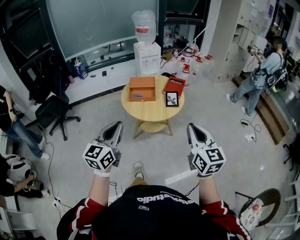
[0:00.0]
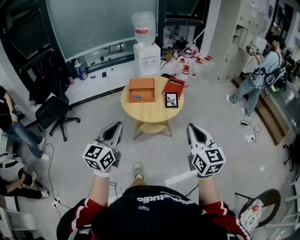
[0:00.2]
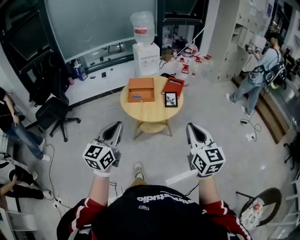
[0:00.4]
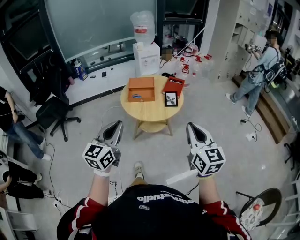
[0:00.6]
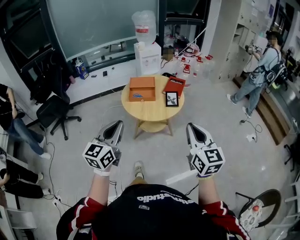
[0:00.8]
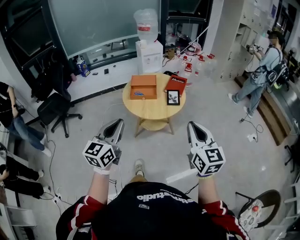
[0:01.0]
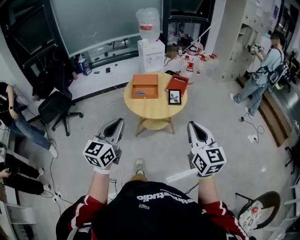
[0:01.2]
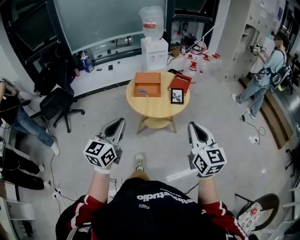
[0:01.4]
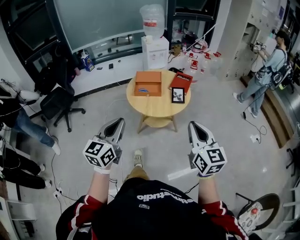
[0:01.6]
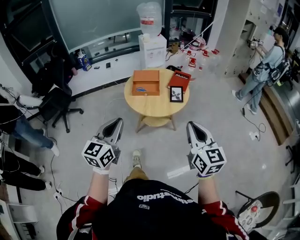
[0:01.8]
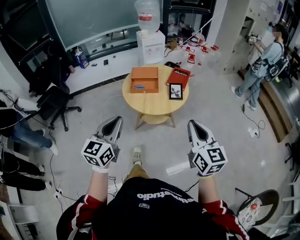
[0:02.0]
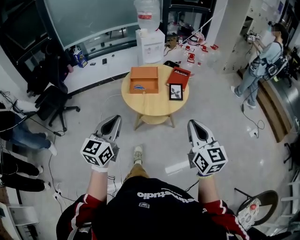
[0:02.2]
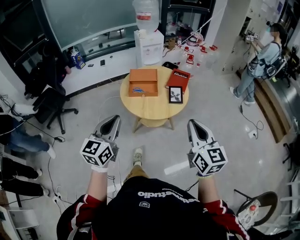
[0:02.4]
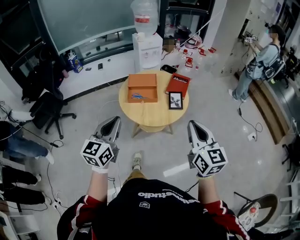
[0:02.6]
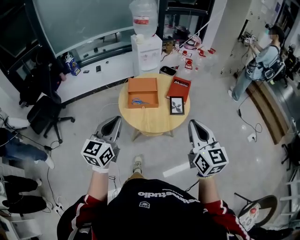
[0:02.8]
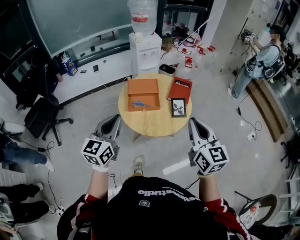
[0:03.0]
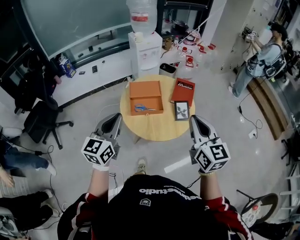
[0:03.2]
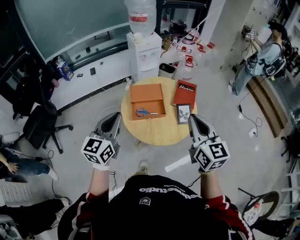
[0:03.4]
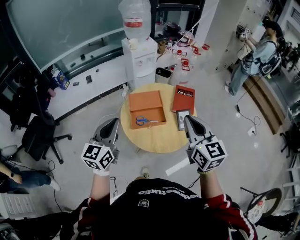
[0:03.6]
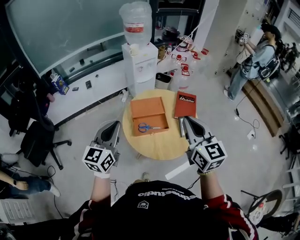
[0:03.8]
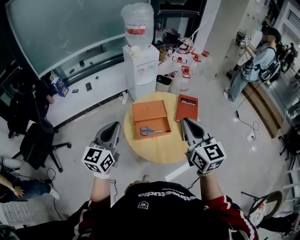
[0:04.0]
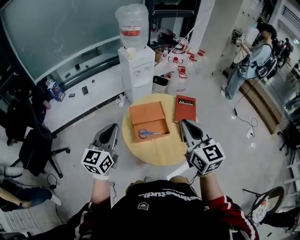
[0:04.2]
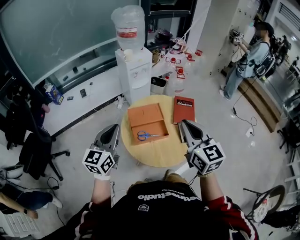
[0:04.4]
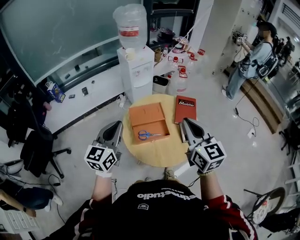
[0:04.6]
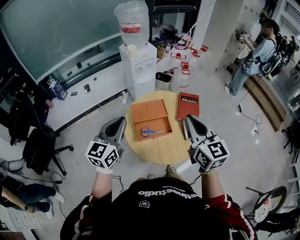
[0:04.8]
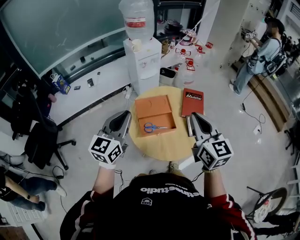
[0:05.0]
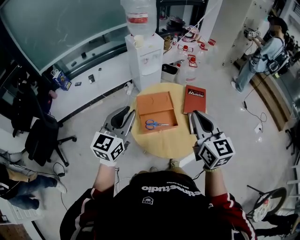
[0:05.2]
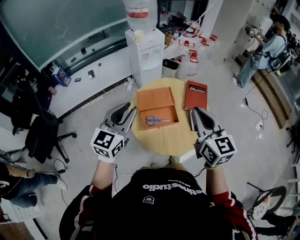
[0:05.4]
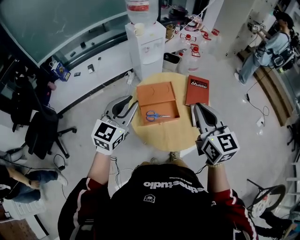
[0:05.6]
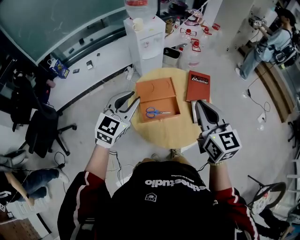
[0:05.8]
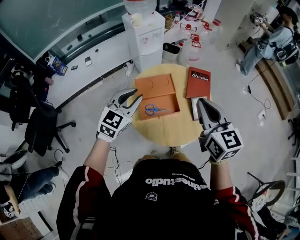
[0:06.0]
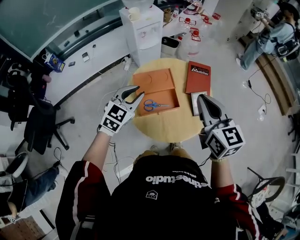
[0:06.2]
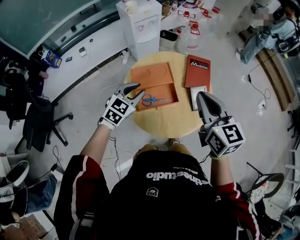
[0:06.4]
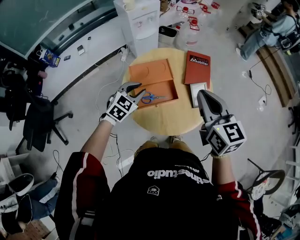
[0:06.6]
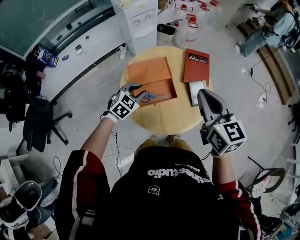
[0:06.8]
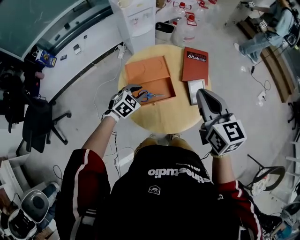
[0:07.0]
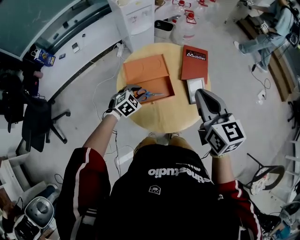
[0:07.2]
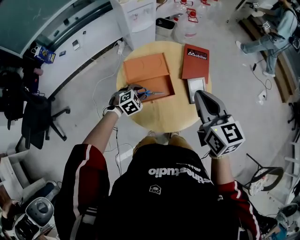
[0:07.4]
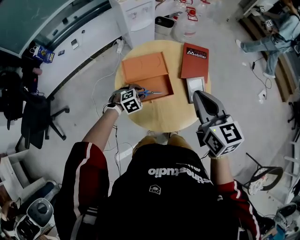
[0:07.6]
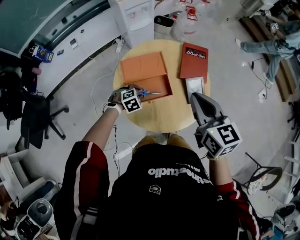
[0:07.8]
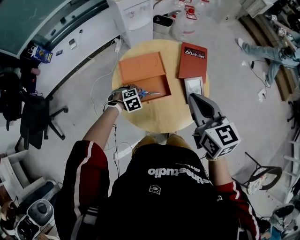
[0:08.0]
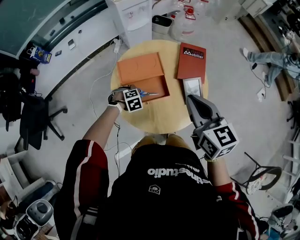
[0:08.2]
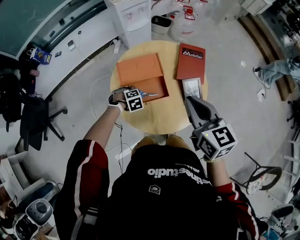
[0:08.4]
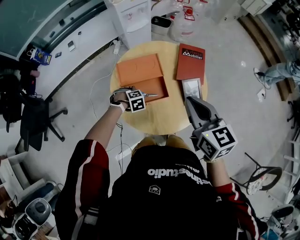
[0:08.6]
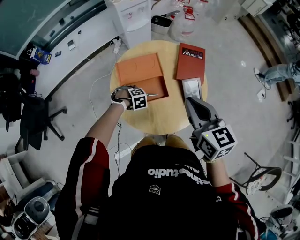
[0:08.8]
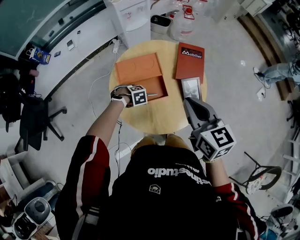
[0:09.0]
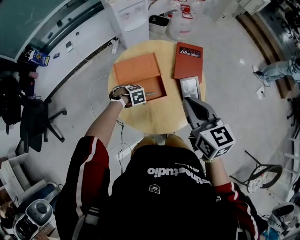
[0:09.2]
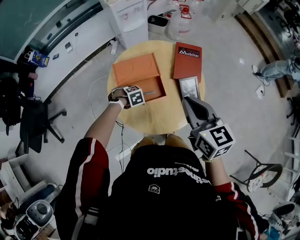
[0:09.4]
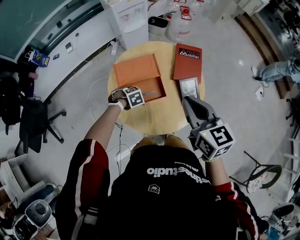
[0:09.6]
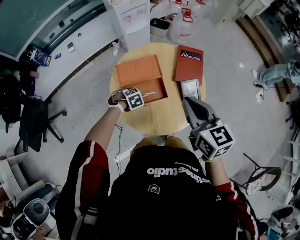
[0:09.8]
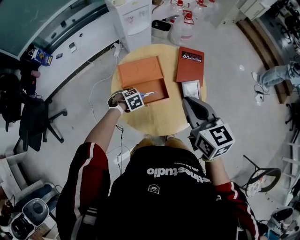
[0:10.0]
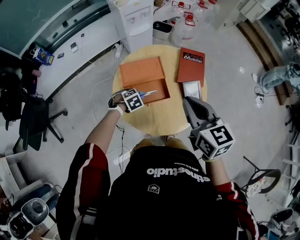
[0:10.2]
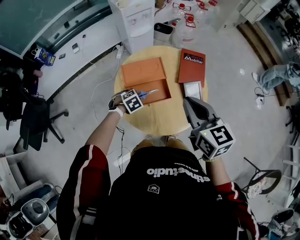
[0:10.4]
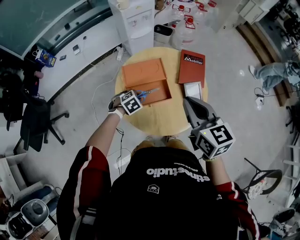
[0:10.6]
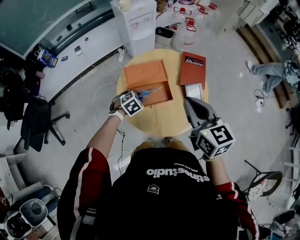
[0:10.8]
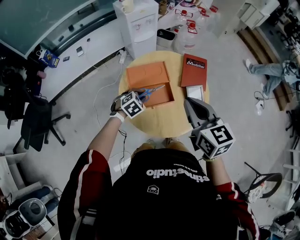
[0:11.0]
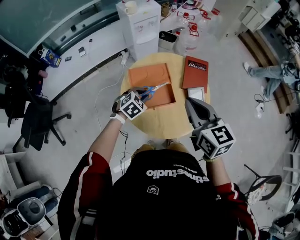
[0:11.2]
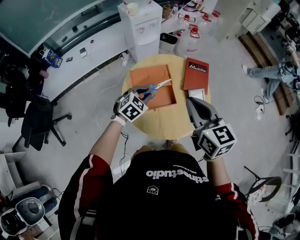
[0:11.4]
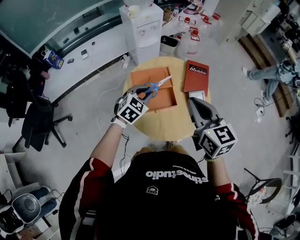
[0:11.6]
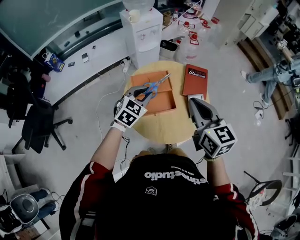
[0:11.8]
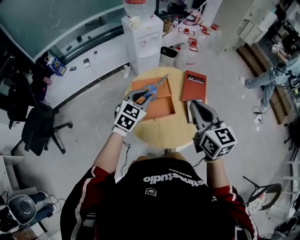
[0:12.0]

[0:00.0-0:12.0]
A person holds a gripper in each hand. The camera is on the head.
0:00.0 to 0:01.6: The grippers stay close to where they were, moving slightly.
0:01.6 to 0:03.0: The grippers both shift forward by some 25 cm.
0:03.0 to 0:04.4: Both grippers travel together forward and to the left, roughly 25 cm.
0:04.4 to 0:06.0: The right gripper ends up approximately 5 cm from where it was. The left gripper shifts about 15 cm forward, downward and to the right, and rotates about 30 degrees.
0:06.0 to 0:07.6: The right gripper shifts about 5 cm downward, while the left gripper heads downward, covering approximately 30 cm, and tips its fingers downward by about 50 degrees.
0:07.6 to 0:09.0: The left gripper heads downward, covering about 5 cm, and changes its angle by about 30 degrees.
0:09.0 to 0:10.4: The left gripper moves upward, roughly 5 cm, and turns by some 20 degrees.
0:10.4 to 0:12.0: The left gripper moves upward, some 25 cm, and tilts its fingers roughly 50 degrees upward.

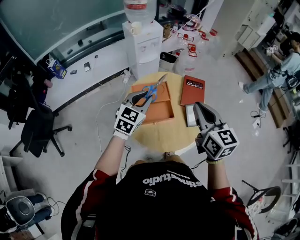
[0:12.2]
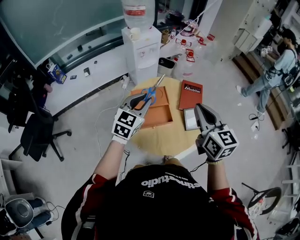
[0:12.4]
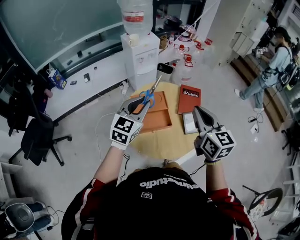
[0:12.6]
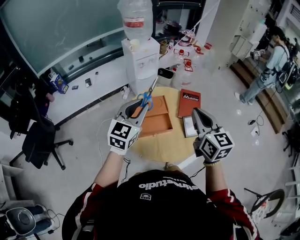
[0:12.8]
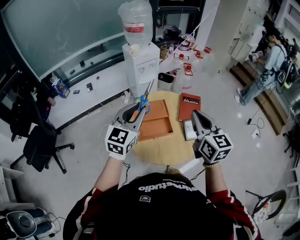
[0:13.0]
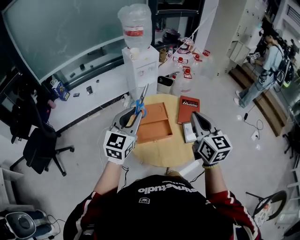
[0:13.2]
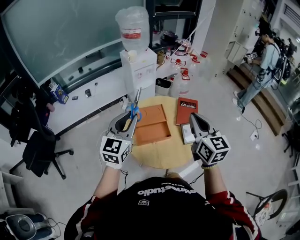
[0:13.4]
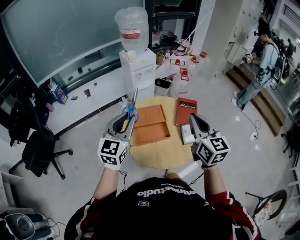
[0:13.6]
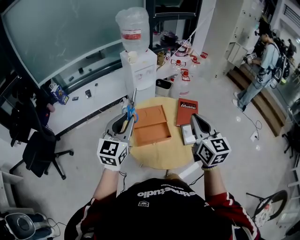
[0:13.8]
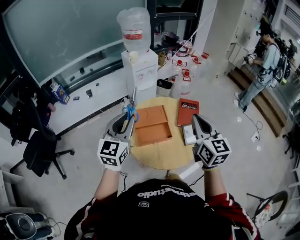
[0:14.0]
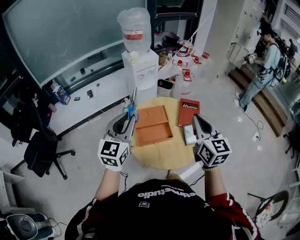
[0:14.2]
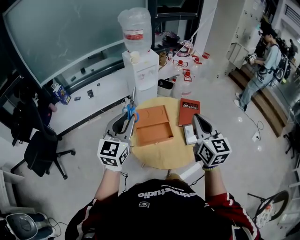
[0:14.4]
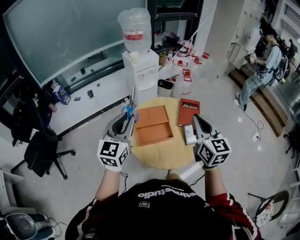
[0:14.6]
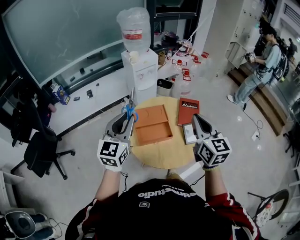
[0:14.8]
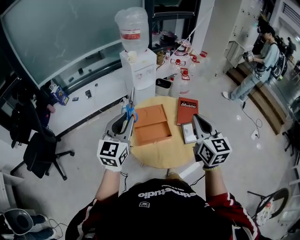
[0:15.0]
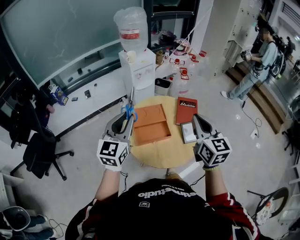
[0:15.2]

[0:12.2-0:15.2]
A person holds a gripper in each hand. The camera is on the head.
0:12.2 to 0:13.8: The left gripper moves upward, backward and to the left, some 15 cm, and turns by about 20 degrees.
0:13.8 to 0:15.2: There are only small adjustments of the grippers.

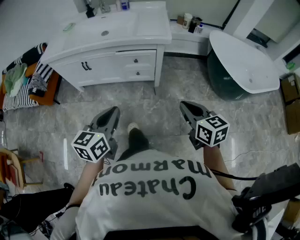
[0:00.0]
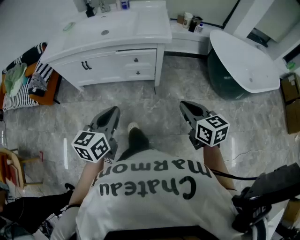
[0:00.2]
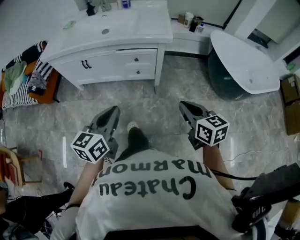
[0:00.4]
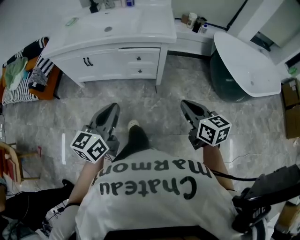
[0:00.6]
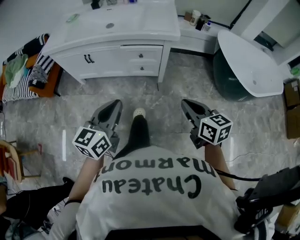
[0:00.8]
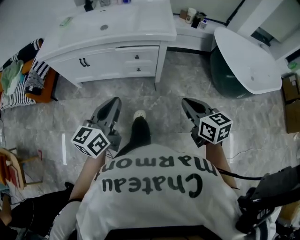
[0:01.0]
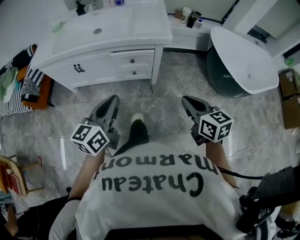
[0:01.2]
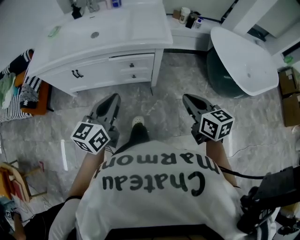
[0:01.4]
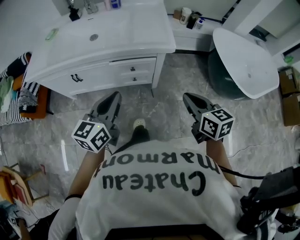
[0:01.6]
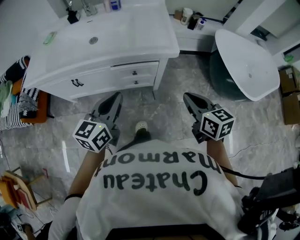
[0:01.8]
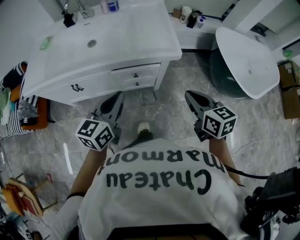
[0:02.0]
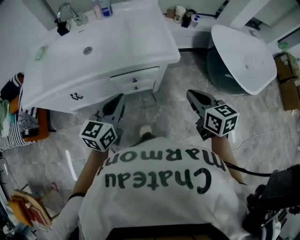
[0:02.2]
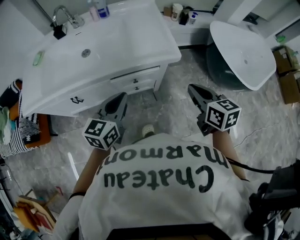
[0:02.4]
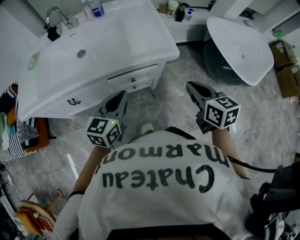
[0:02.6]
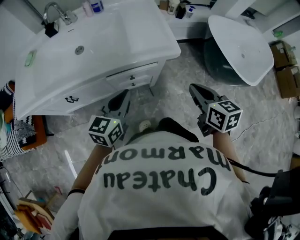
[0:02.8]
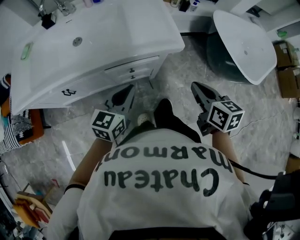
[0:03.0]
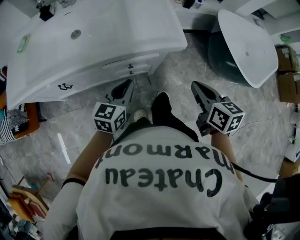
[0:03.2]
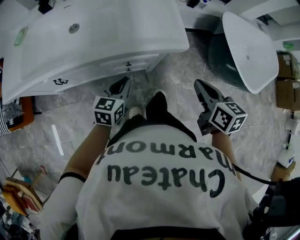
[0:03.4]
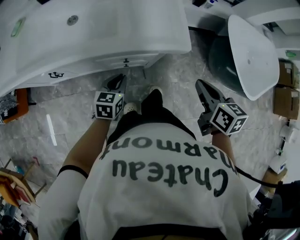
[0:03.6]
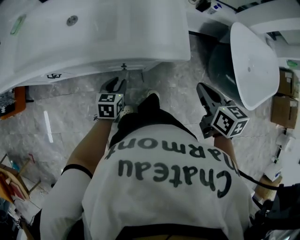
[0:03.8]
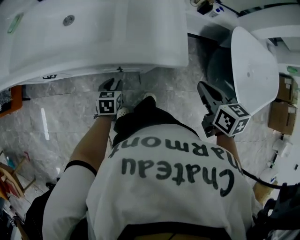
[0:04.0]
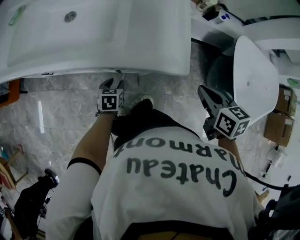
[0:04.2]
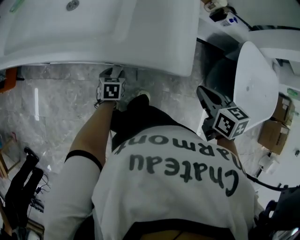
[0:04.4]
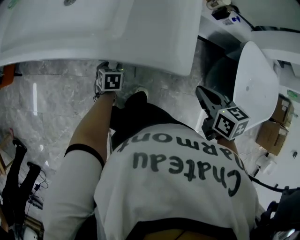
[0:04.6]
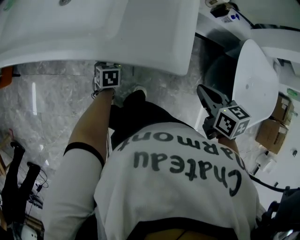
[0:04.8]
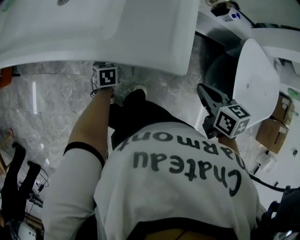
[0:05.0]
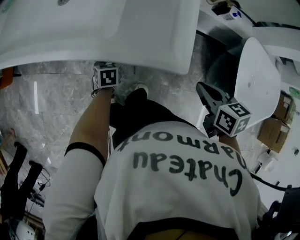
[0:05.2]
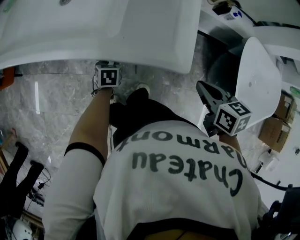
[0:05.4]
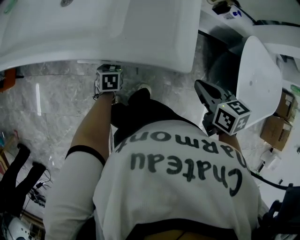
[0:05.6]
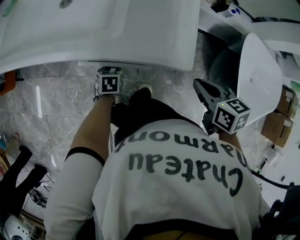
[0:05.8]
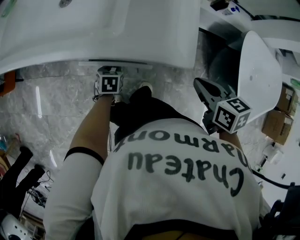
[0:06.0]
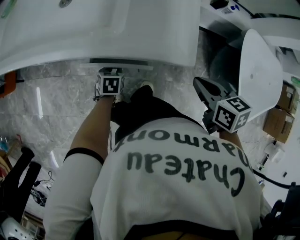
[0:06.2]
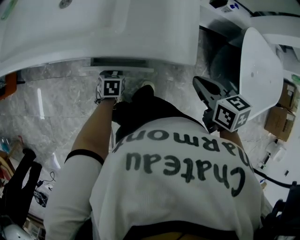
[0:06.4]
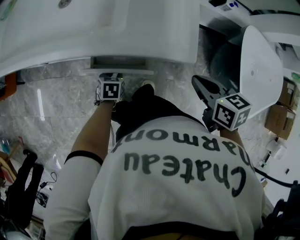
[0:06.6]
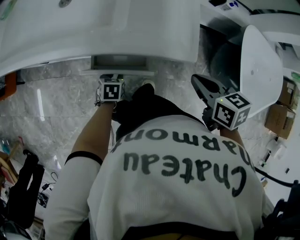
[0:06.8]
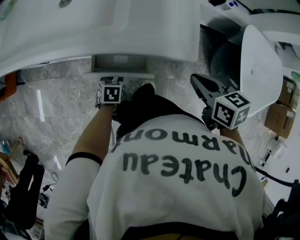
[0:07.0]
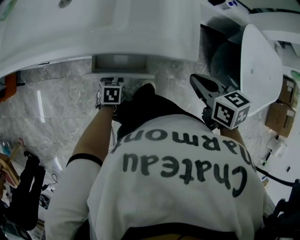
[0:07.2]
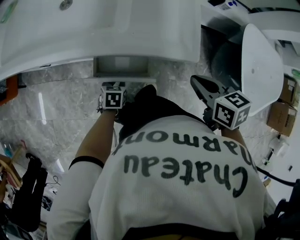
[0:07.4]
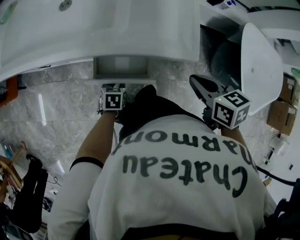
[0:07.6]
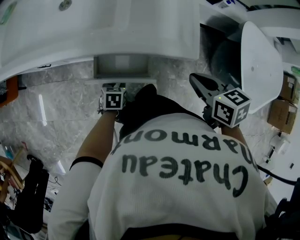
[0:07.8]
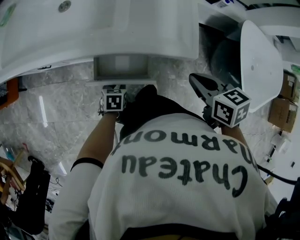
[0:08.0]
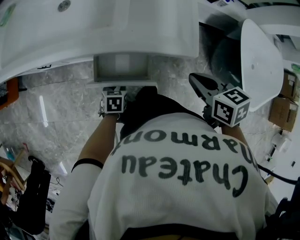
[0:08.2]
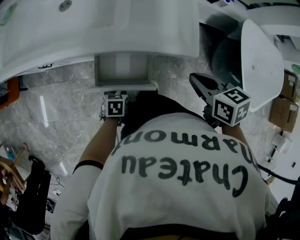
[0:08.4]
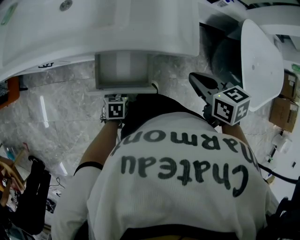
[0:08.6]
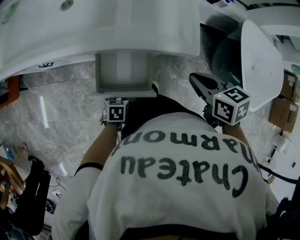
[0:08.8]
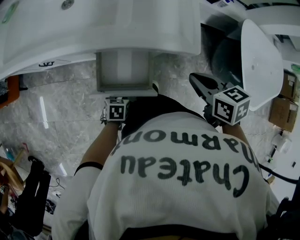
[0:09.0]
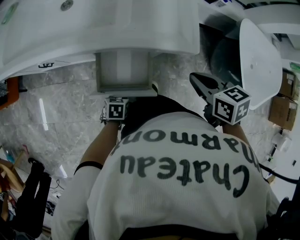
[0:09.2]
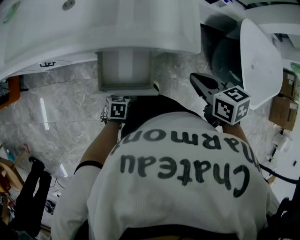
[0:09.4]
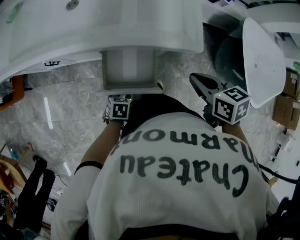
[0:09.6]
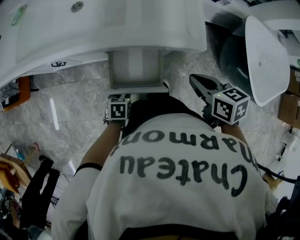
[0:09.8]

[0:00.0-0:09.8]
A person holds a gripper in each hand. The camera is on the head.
0:00.0 to 0:01.4: Both grippers travel together forward, some 15 cm.
0:01.4 to 0:02.8: Both grippers travel together forward, approximately 15 cm.
0:02.8 to 0:04.2: The right gripper is displaced forward, to the right and downward by roughly 15 cm, and swivels roughly 20 degrees. Meanwhile the left gripper is displaced downward by some 30 cm, tilts its fingers approximately 40 degrees downward, and opens.
0:05.6 to 0:07.0: The left gripper travels backward by about 5 cm.
0:07.0 to 0:08.4: The left gripper goes approximately 5 cm backward.
0:08.4 to 0:09.8: The left gripper travels to the left by some 5 cm; the right gripper changes place by approximately 5 cm.
